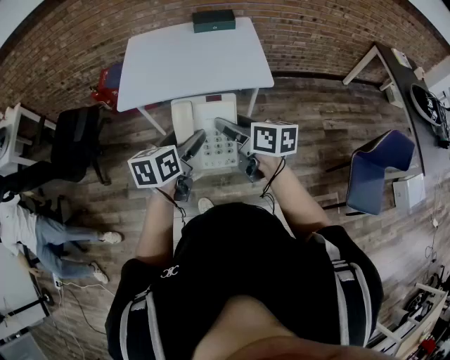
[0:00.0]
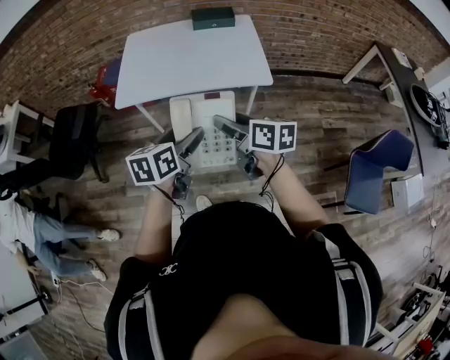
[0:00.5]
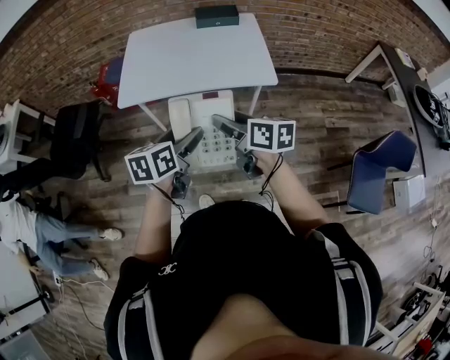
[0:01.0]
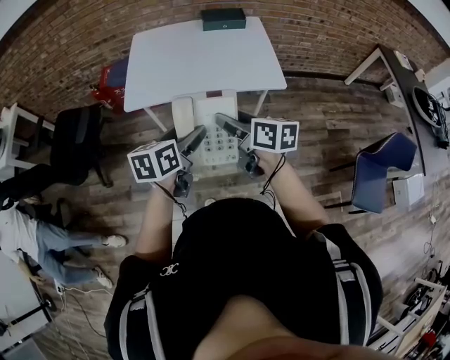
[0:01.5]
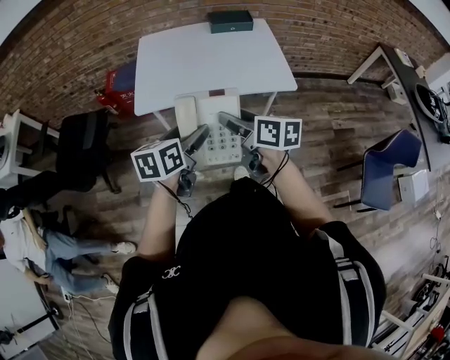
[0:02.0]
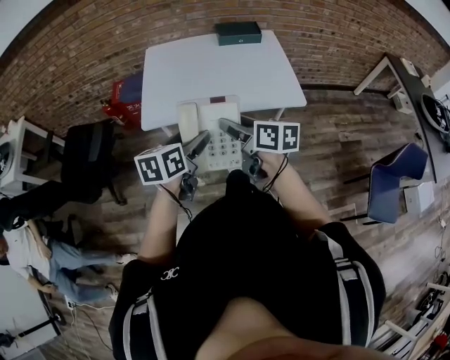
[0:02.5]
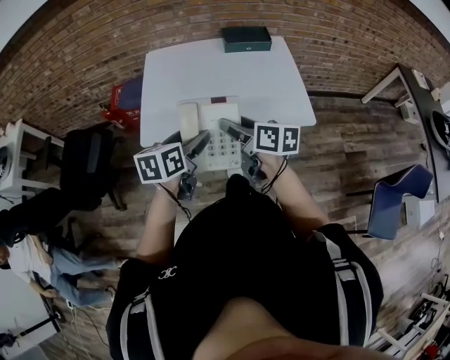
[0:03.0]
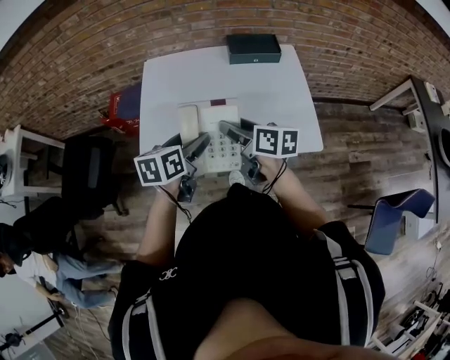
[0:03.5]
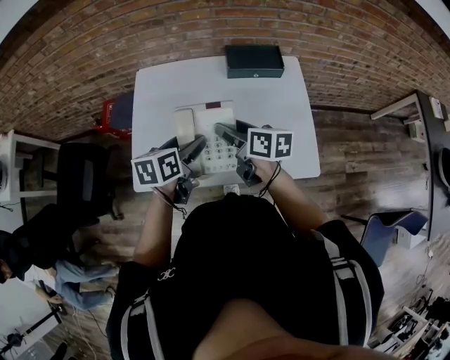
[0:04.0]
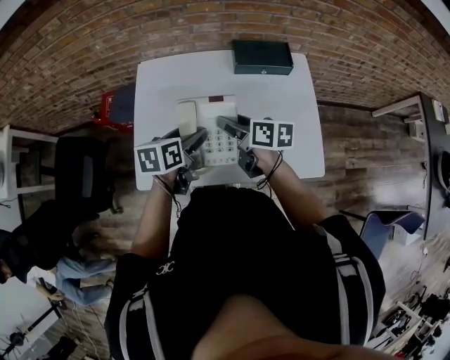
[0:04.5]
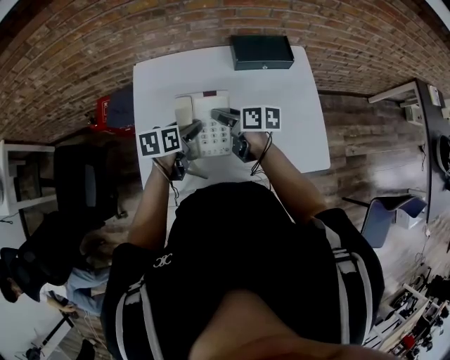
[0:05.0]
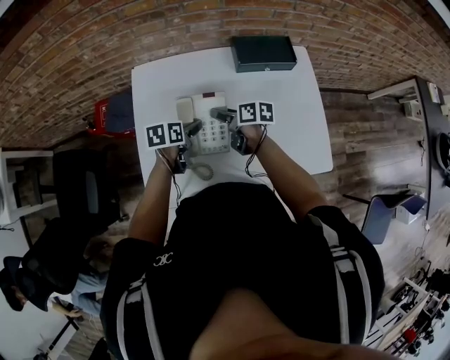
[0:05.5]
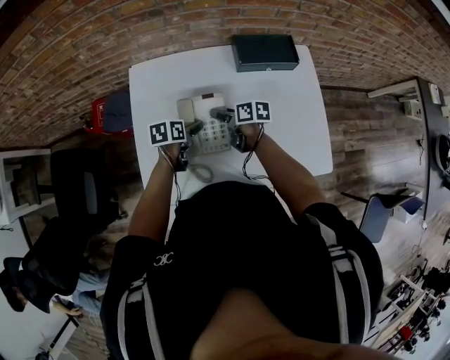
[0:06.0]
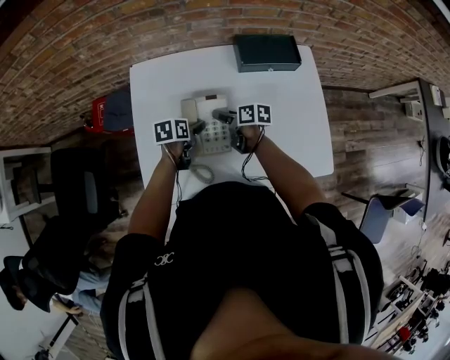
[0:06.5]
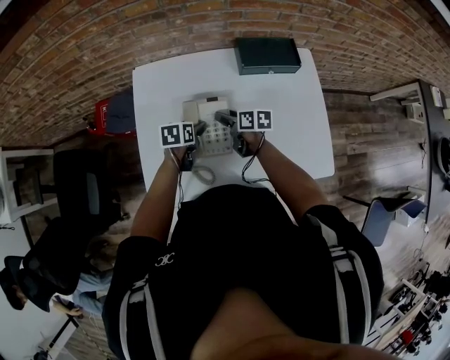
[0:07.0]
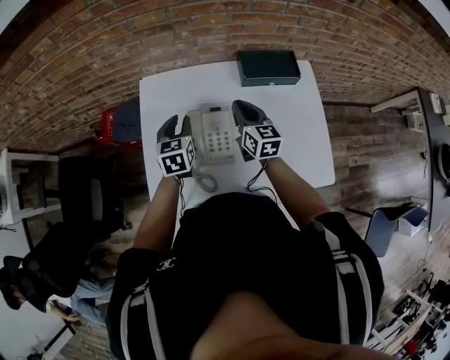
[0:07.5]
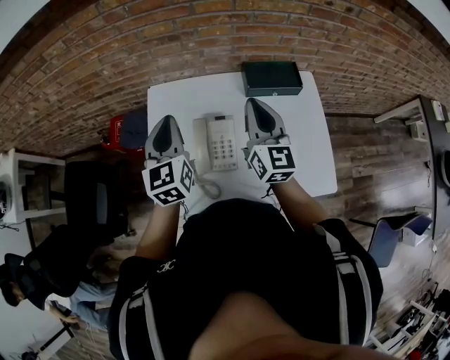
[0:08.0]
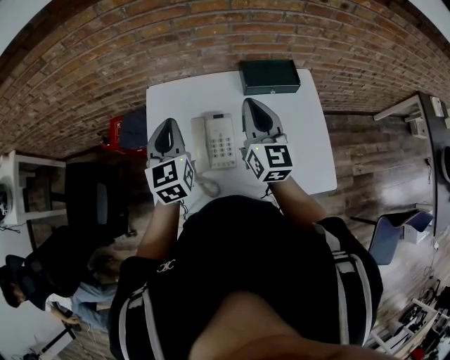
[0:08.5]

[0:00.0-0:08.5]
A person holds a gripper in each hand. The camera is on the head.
0:00.0 to 0:02.0: Both grippers move to the left and forward, some 15 cm.
0:02.0 to 0:04.0: Both grippers are carried forward, roughly 40 cm.
0:04.0 to 0:06.5: The two grippers go approximately 25 cm downward and forward. The left gripper swivels approximately 20 degrees; the right gripper turns by approximately 20 degrees.
0:06.5 to 0:08.5: Both grippers travel together upward, about 30 cm. The right gripper tips its fingers upward by about 30 degrees, and closes up, while the left gripper tilts its fingers approximately 40 degrees upward, and closes up.

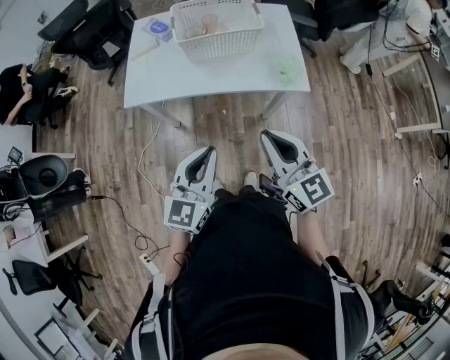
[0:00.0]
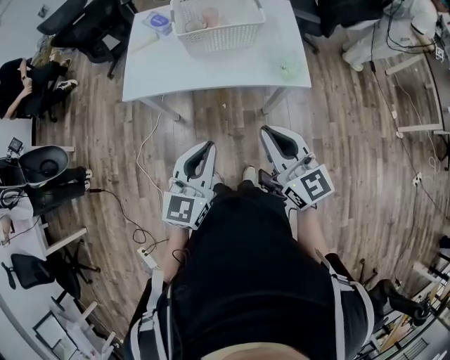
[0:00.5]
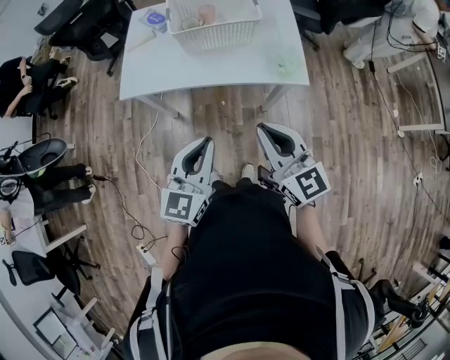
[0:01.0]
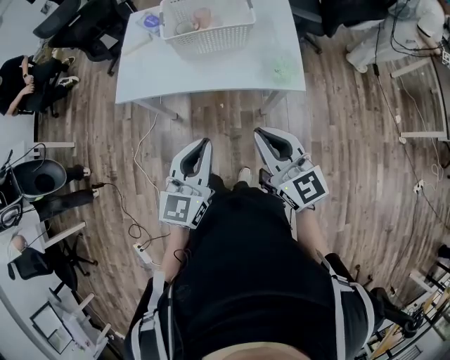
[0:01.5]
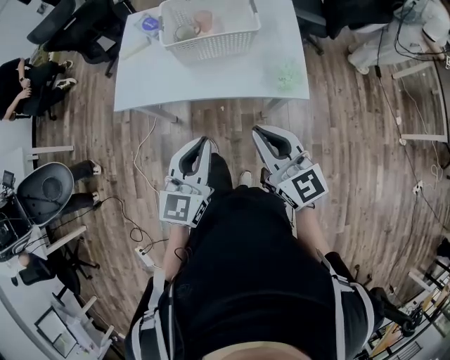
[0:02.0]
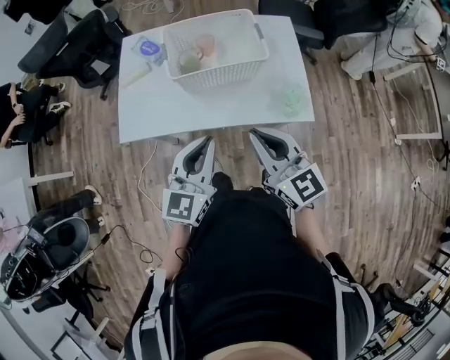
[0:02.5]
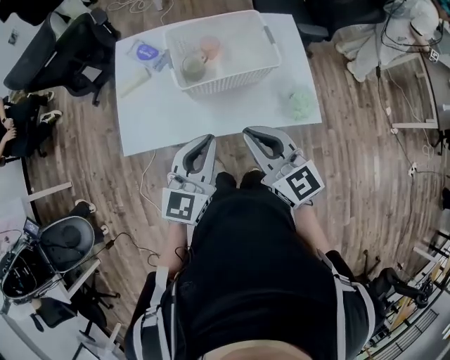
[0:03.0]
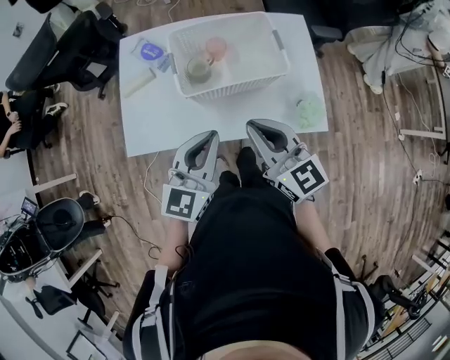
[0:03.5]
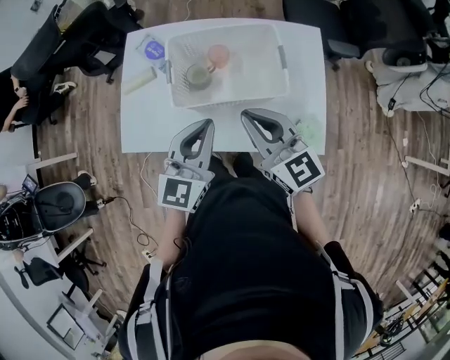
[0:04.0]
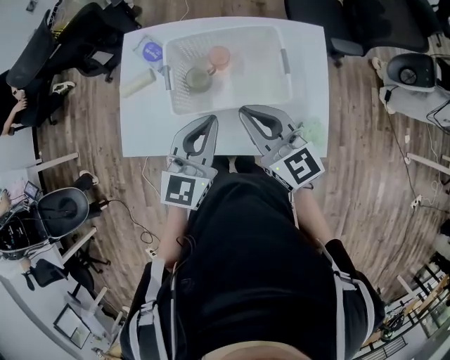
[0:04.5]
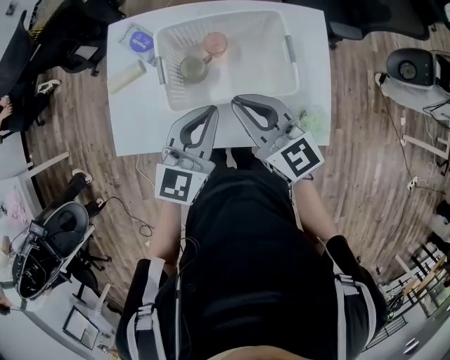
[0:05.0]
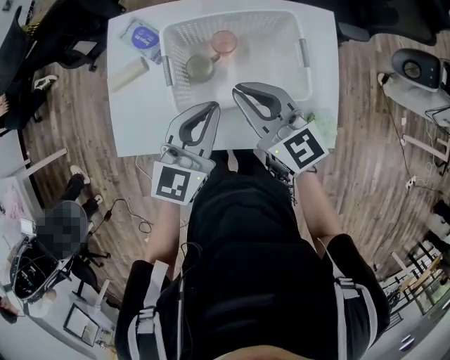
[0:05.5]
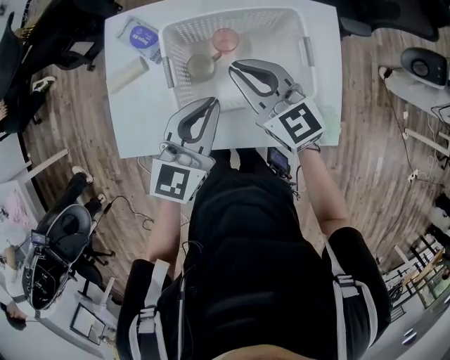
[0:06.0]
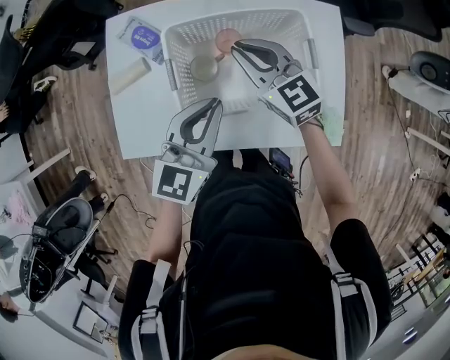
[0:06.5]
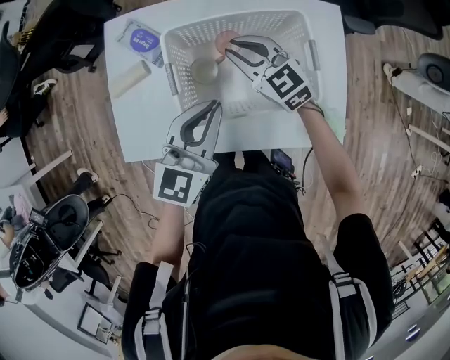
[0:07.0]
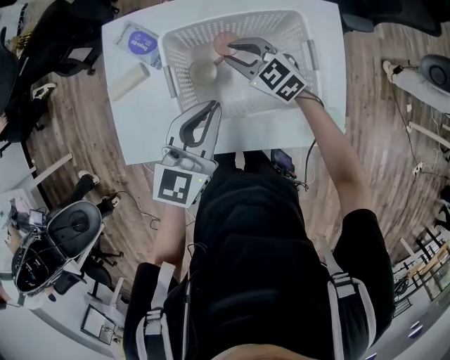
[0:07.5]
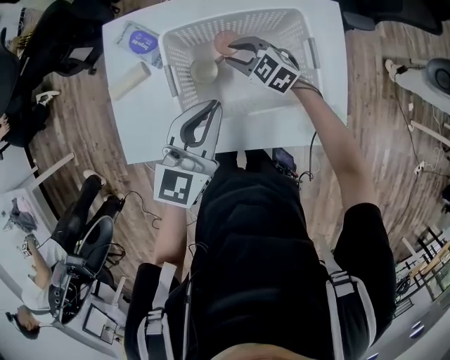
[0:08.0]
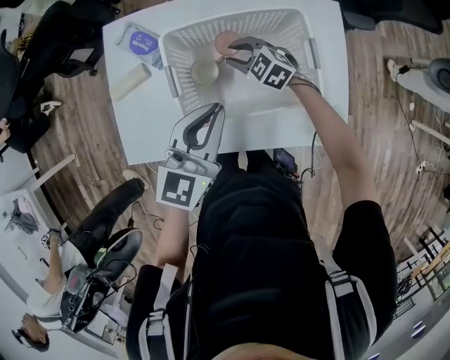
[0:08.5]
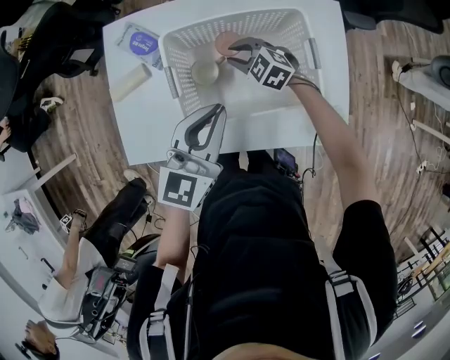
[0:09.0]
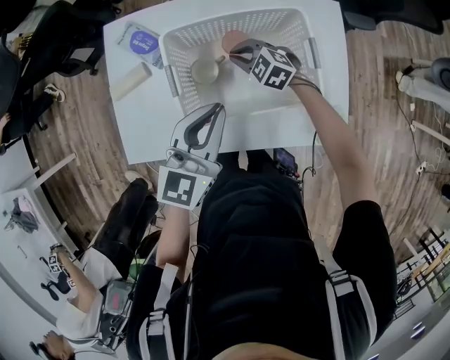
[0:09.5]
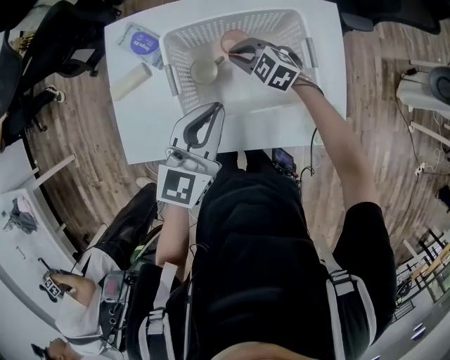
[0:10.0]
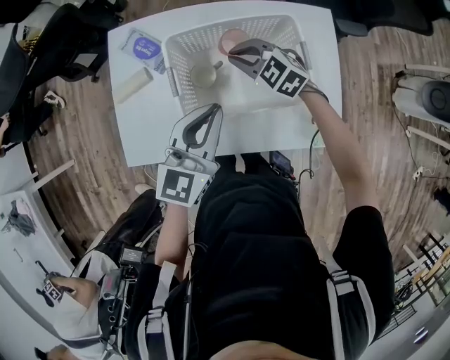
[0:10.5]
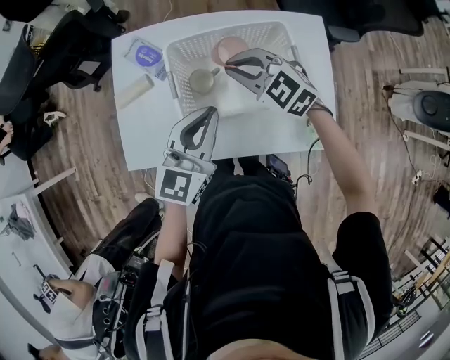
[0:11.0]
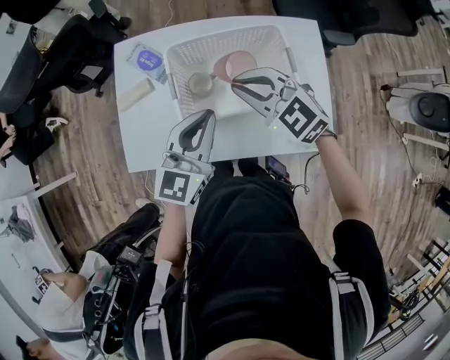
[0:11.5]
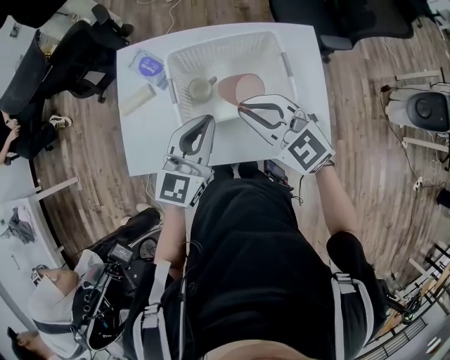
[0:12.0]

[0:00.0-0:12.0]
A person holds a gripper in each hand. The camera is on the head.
0:00.0 to 0:02.0: Both grippers travel together forward, some 10 cm.
0:02.0 to 0:04.0: Both grippers move forward, some 30 cm.
0:04.0 to 0:06.0: The right gripper travels forward and downward by approximately 15 cm; the left gripper shifts about 10 cm forward.
0:06.0 to 0:08.0: The right gripper goes roughly 20 cm downward and forward, swivels roughly 30 degrees, and opens.
0:08.0 to 0:10.0: There are only small adjustments of the grippers.
0:10.0 to 0:12.0: The right gripper goes roughly 25 cm upward and backward, and changes its angle by approximately 20 degrees; the left gripper changes place by roughly 5 cm.

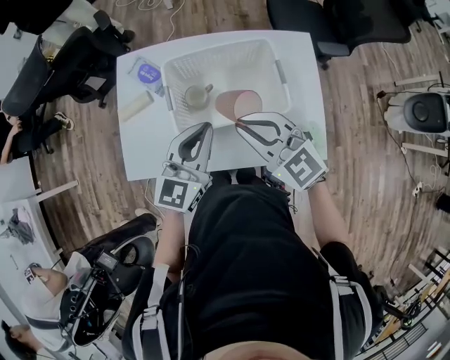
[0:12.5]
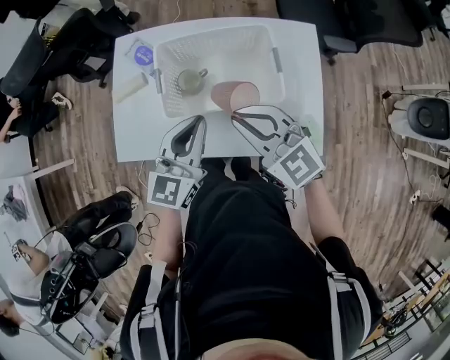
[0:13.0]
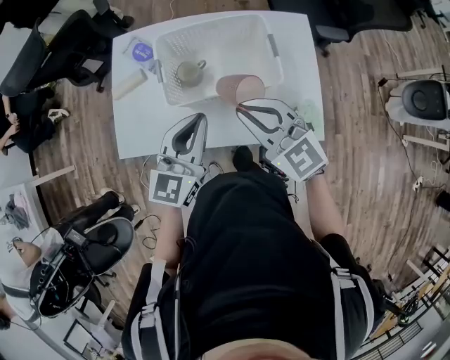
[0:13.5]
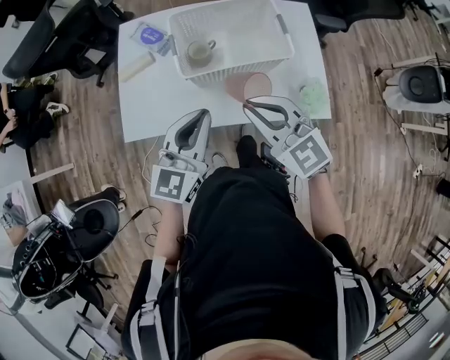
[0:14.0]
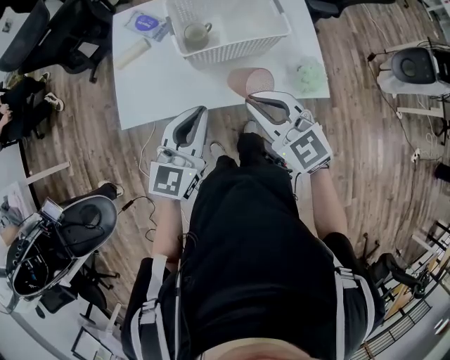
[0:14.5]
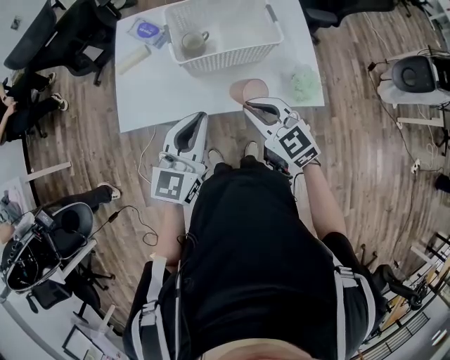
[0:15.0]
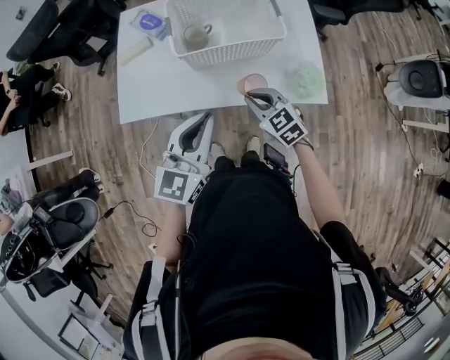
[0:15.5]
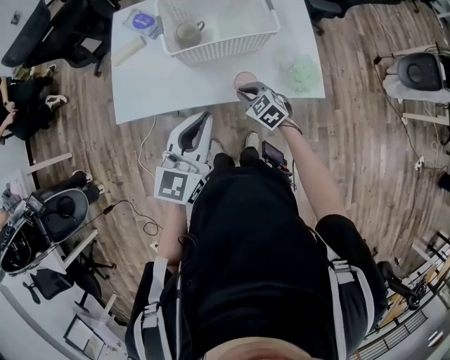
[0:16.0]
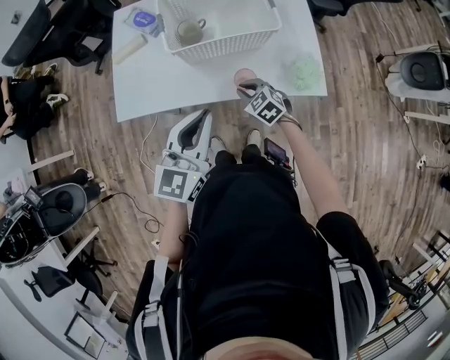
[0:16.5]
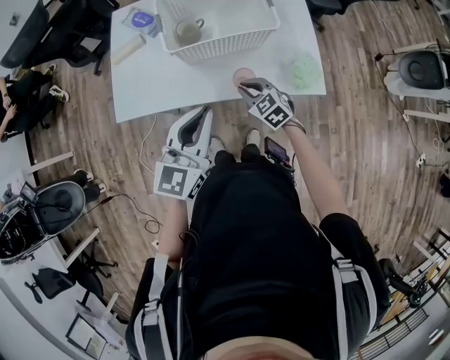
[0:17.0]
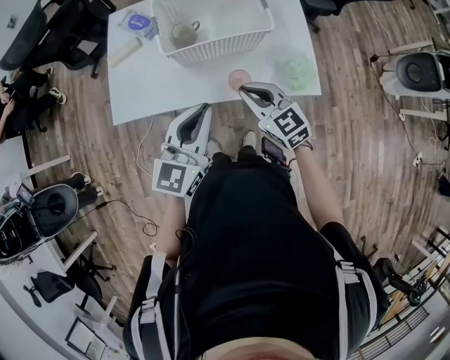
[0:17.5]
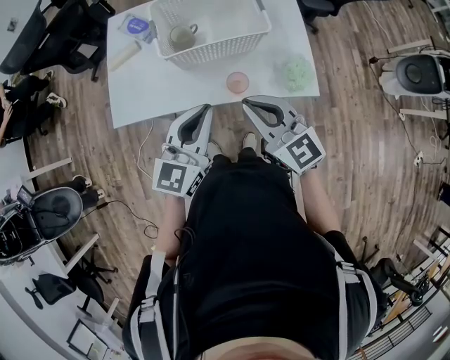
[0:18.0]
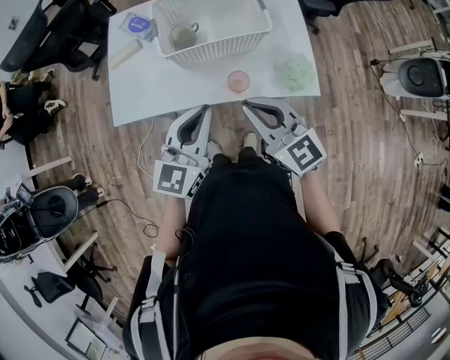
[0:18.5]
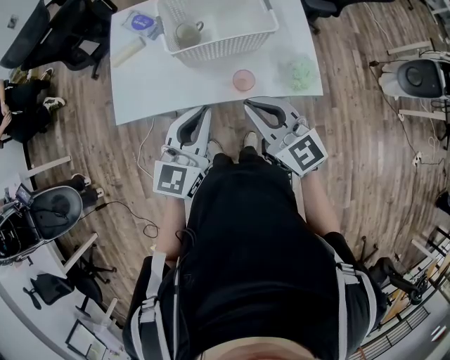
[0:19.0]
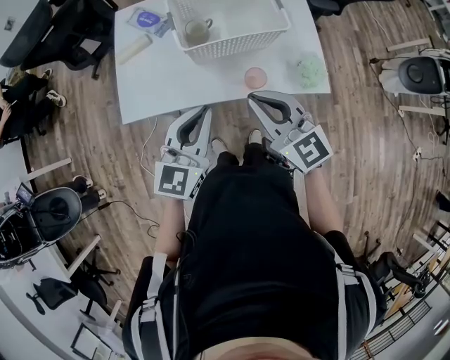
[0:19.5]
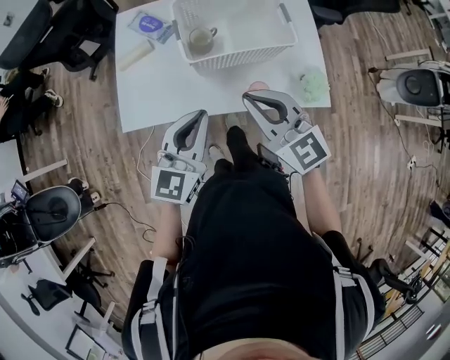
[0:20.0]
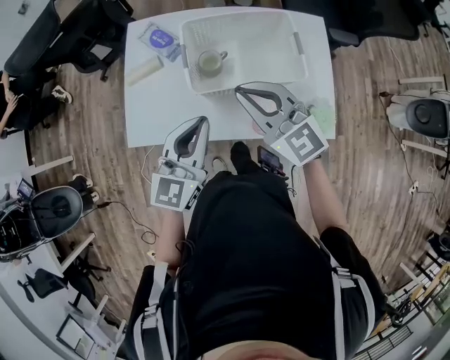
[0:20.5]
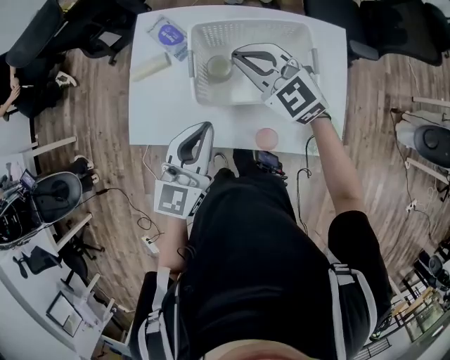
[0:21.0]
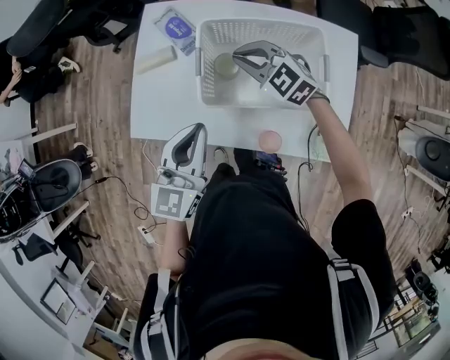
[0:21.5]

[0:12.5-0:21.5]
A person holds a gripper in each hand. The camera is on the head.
0:12.5 to 0:14.5: The left gripper travels backward and to the left by roughly 20 cm. Meanwhile the right gripper heads backward, covering roughly 20 cm.
0:14.5 to 0:17.0: The right gripper travels downward by approximately 20 cm, and turns by about 20 degrees. Meanwhile the left gripper moves to the right, some 5 cm.
0:17.0 to 0:19.5: The right gripper moves upward, roughly 25 cm, and points its fingers roughly 30 degrees further upward. The left gripper travels to the left by about 5 cm.
0:19.5 to 0:21.5: The right gripper shifts roughly 35 cm forward, and rotates some 40 degrees. Meanwhile the left gripper heads forward, covering some 20 cm.
